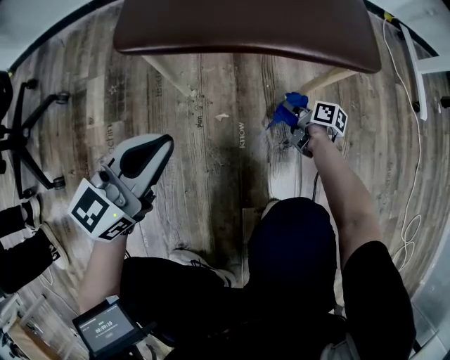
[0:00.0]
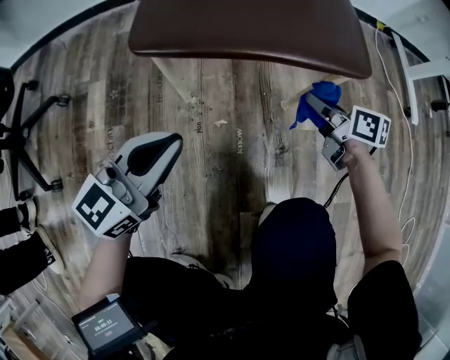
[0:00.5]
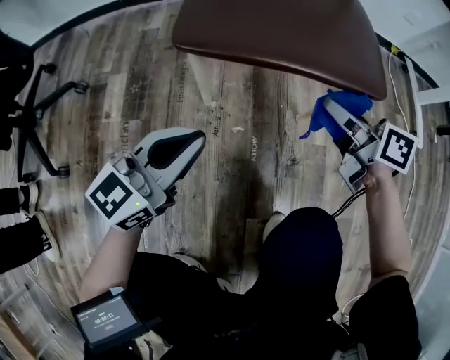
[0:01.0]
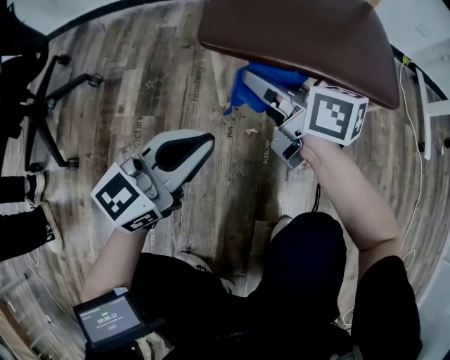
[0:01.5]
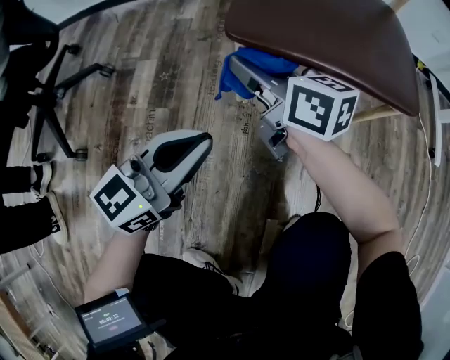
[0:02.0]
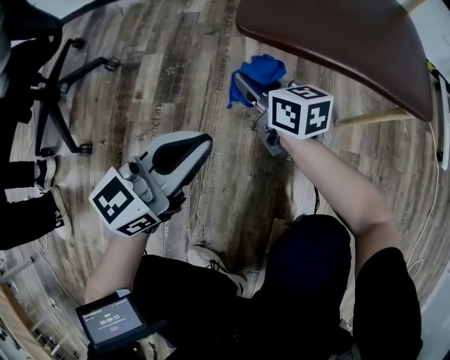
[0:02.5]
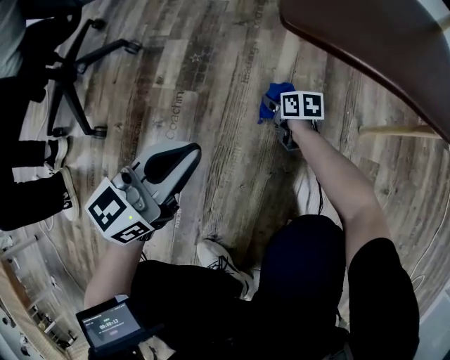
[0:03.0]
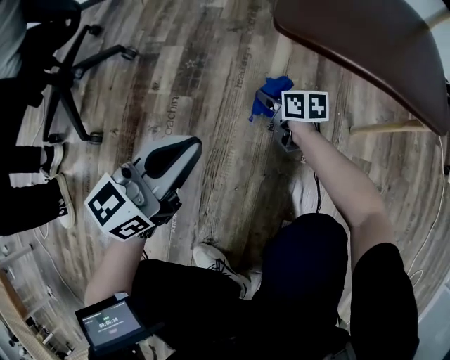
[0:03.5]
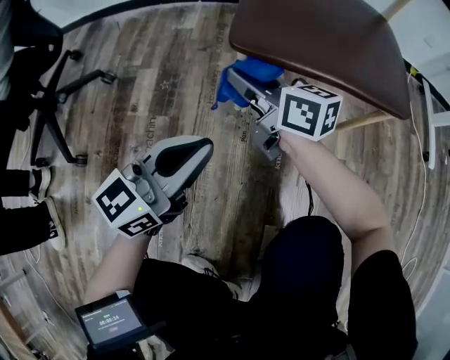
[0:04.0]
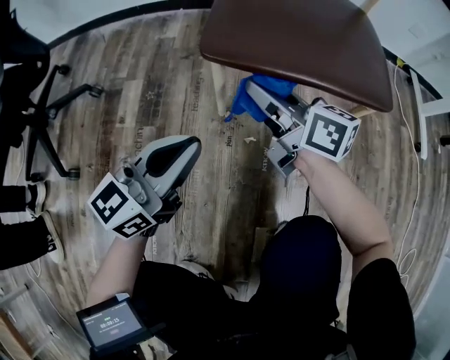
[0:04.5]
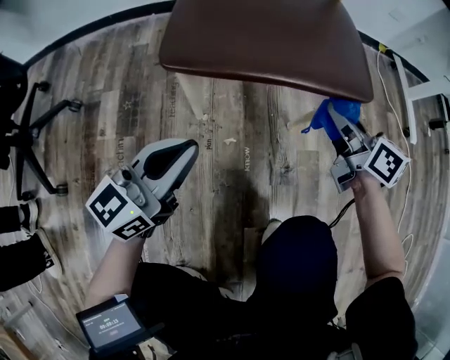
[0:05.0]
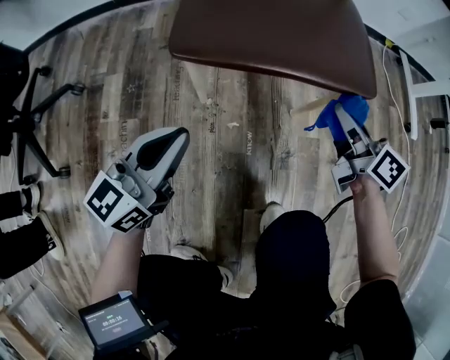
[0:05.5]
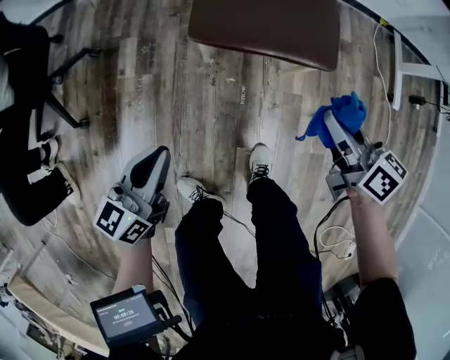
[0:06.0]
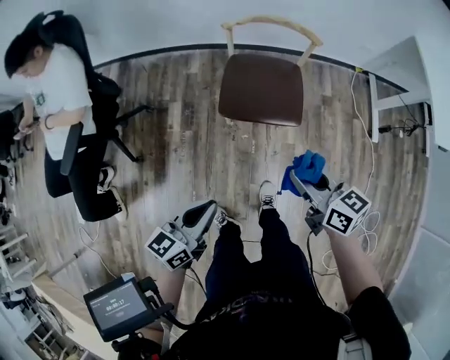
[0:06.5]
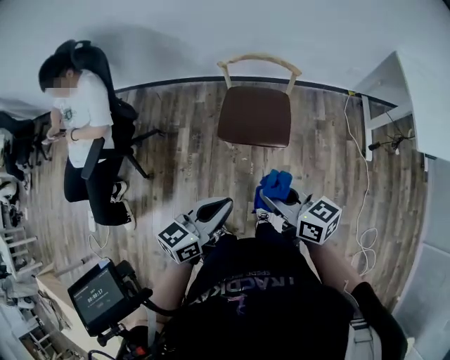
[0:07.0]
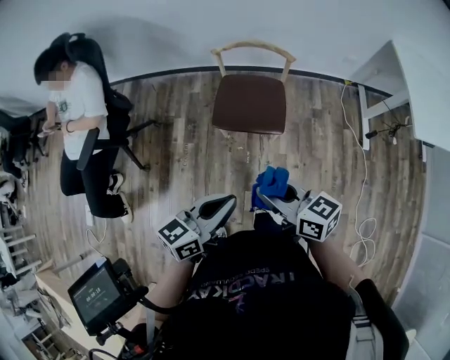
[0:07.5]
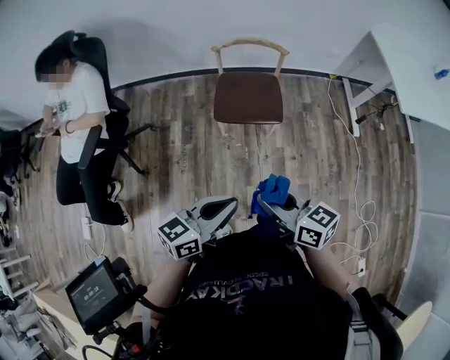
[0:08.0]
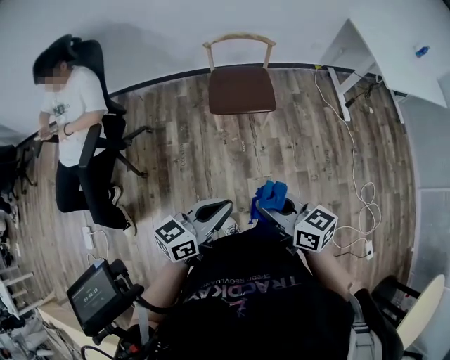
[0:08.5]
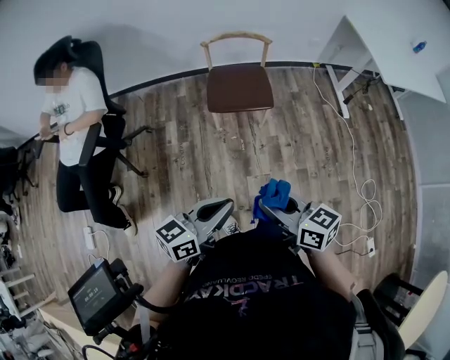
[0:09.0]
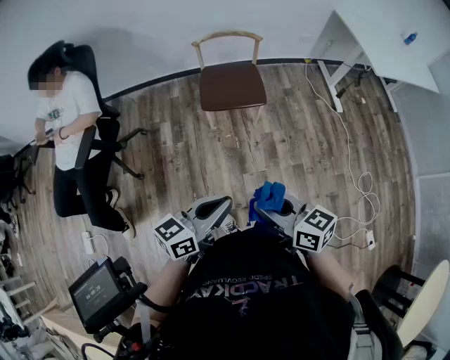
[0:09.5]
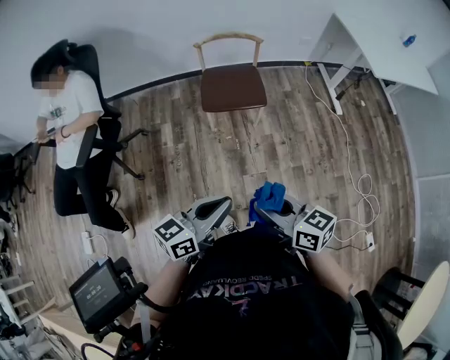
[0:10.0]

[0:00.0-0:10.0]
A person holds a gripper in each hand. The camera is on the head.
0:00.0 to 0:02.0: The right gripper travels to the left and upward by some 50 cm, and twists roughly 40 degrees counterclockwise, seen from behind. Meanwhile the left gripper travels to the left by some 5 cm.
0:02.0 to 0:04.0: The right gripper reaches about 35 cm downward, then returns.
0:04.0 to 0:06.0: The right gripper shifts approximately 40 cm to the right, upward and backward, and turns by roughly 20 degrees. The left gripper travels upward and backward by approximately 20 cm, and rotates some 20 degrees.
0:06.0 to 0:08.0: The two grippers go approximately 50 cm upward and backward. The left gripper rotates some 20 degrees.
0:08.0 to 0:10.0: Both grippers move backward, approximately 15 cm.

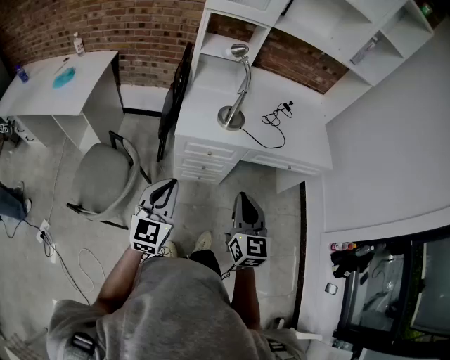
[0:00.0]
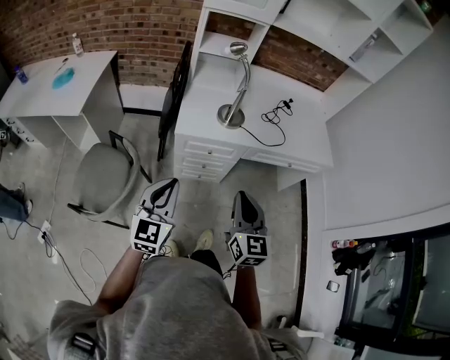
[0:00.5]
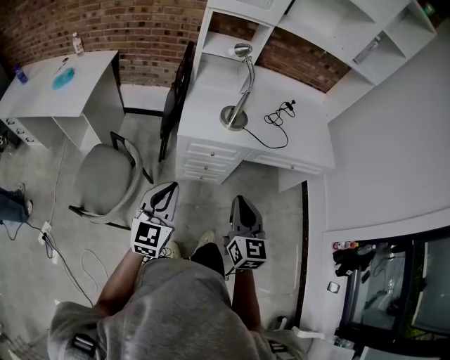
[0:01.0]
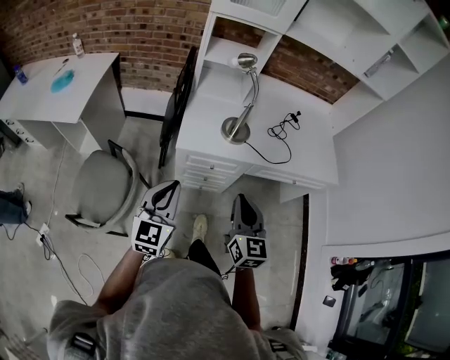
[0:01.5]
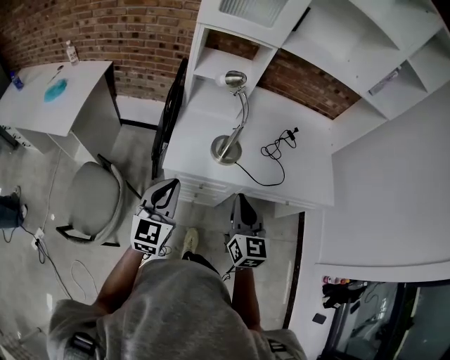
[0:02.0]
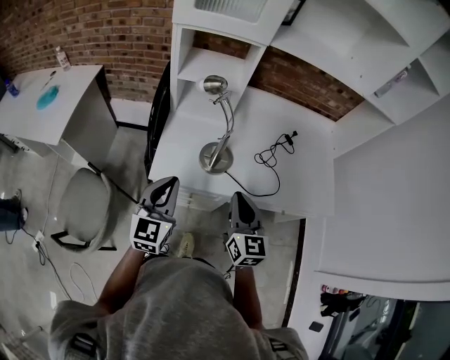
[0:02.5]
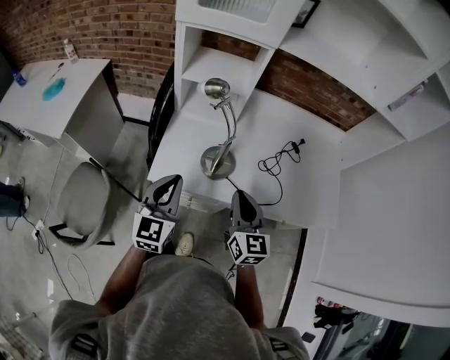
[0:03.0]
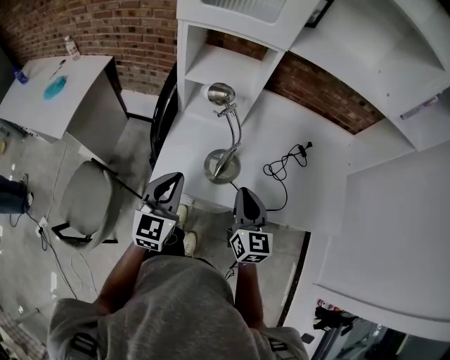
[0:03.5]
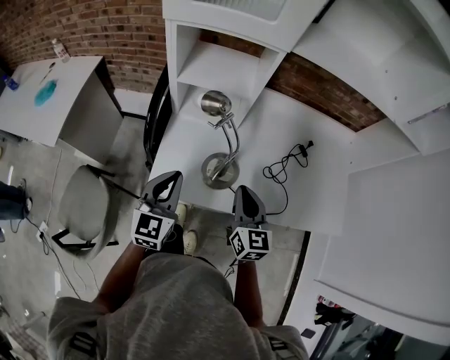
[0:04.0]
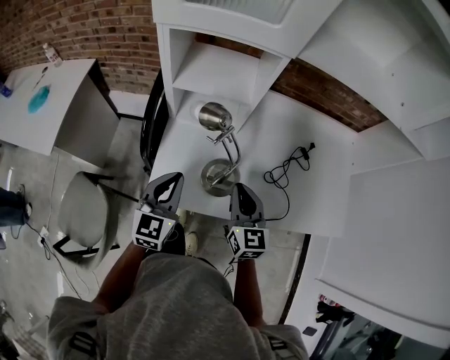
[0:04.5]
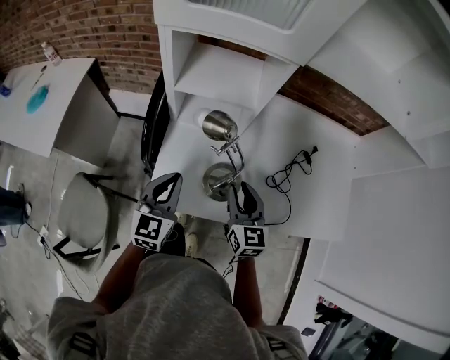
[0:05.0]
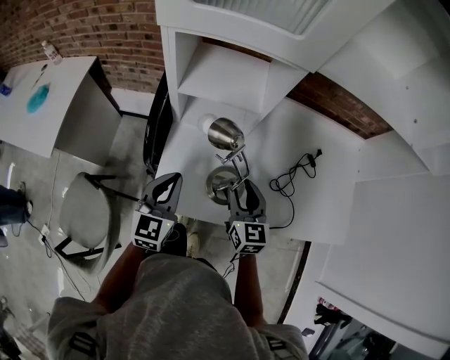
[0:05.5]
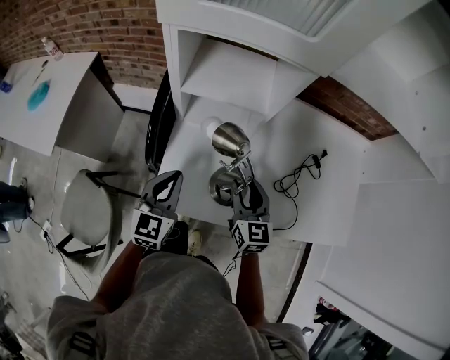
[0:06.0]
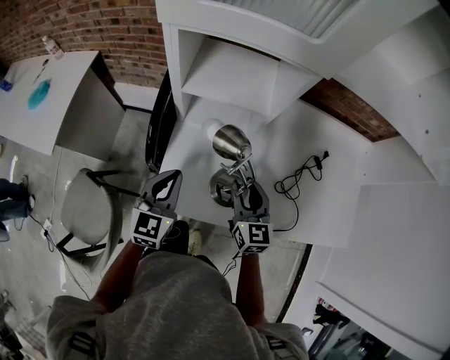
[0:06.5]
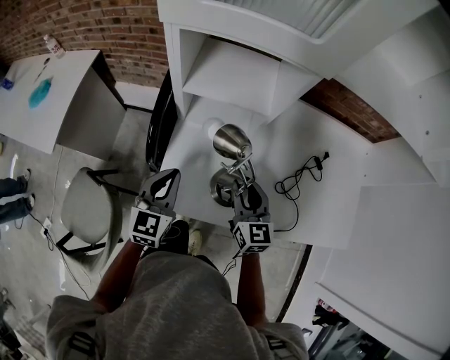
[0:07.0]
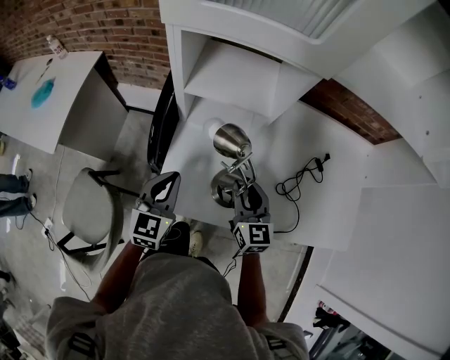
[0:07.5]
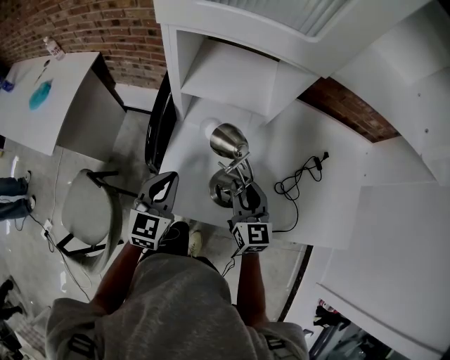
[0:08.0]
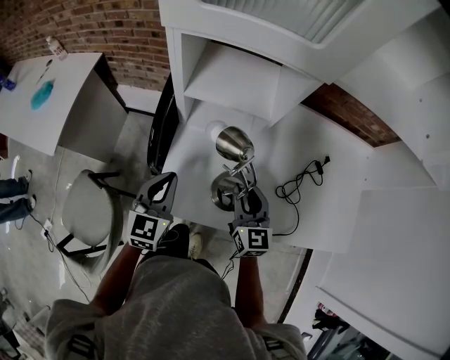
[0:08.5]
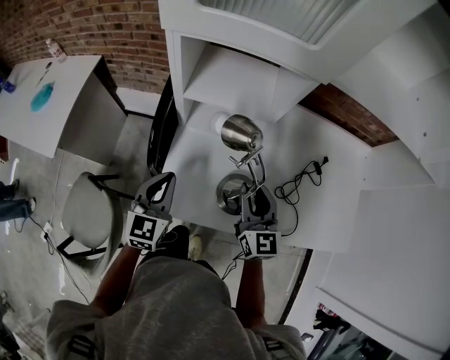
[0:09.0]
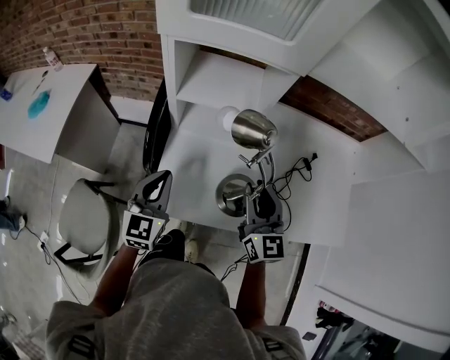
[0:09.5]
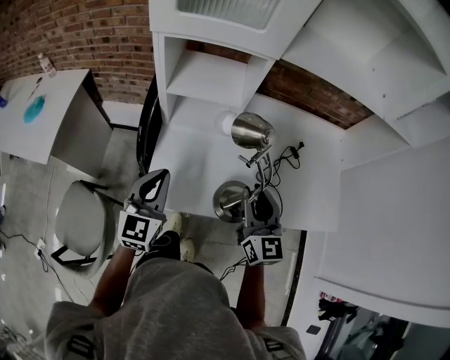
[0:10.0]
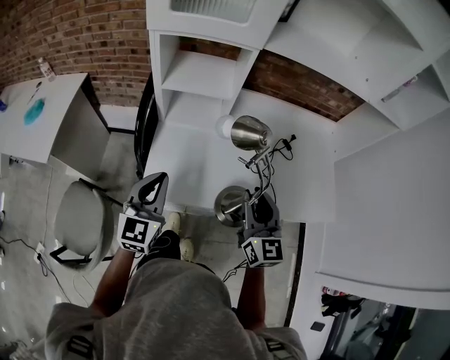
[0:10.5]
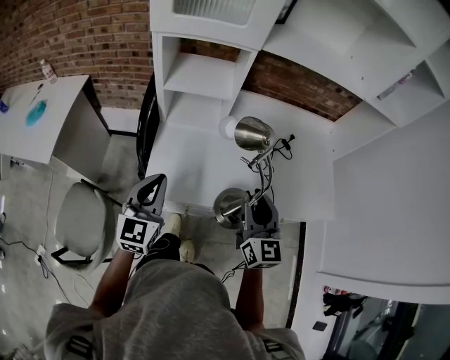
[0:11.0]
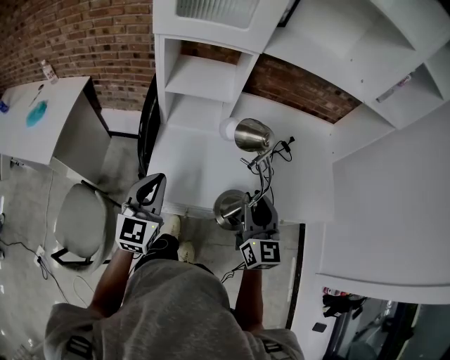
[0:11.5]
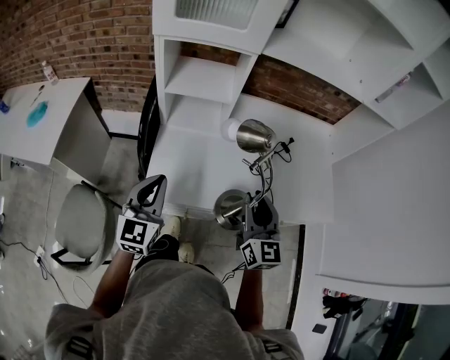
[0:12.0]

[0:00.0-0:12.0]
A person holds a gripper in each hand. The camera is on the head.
0:00.0 to 0:02.0: Both grippers travel together forward, approximately 20 cm.
0:02.0 to 0:04.0: The two grippers go about 20 cm forward.
0:04.0 to 0:06.0: Both grippers move forward, some 10 cm. The right gripper opens up.
0:06.0 to 0:08.0: The grippers make only small movements.
0:08.0 to 0:10.0: The left gripper shifts about 10 cm upward and backward; the right gripper goes about 15 cm upward, backward and to the right.
0:10.0 to 0:12.0: The two grippers go some 5 cm backward.

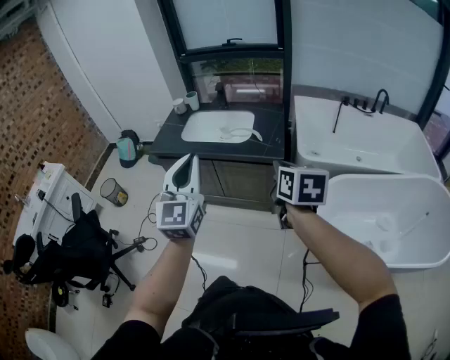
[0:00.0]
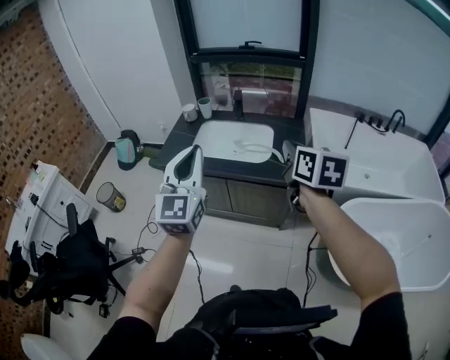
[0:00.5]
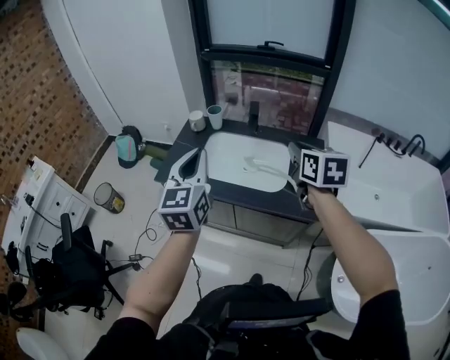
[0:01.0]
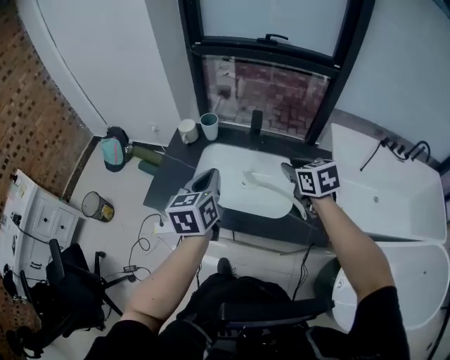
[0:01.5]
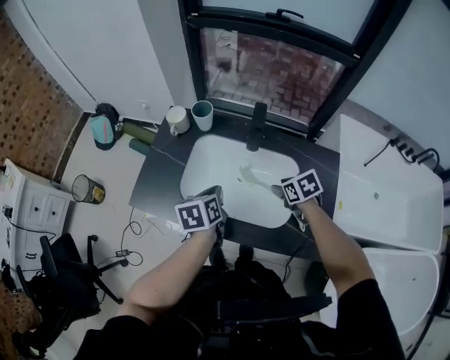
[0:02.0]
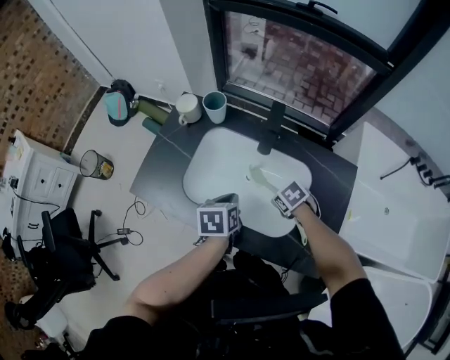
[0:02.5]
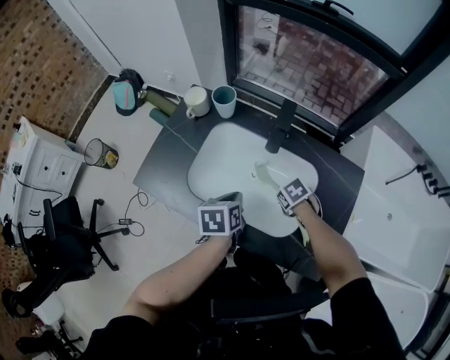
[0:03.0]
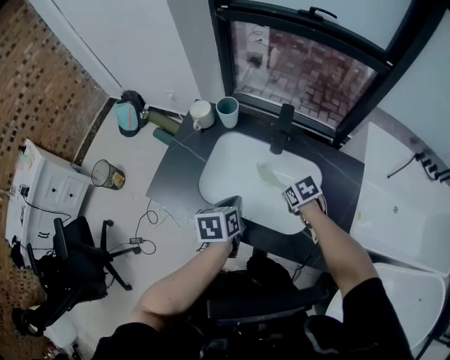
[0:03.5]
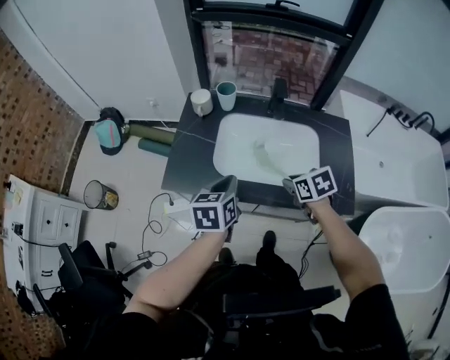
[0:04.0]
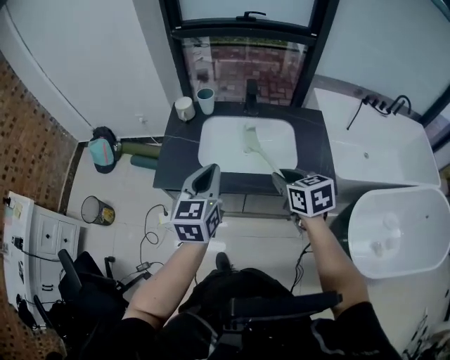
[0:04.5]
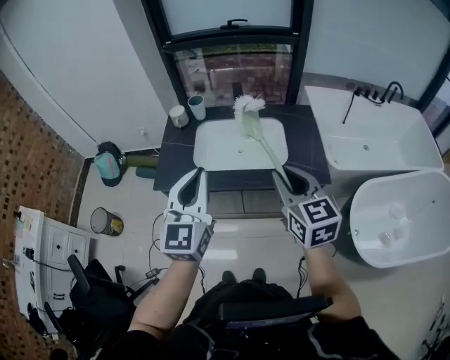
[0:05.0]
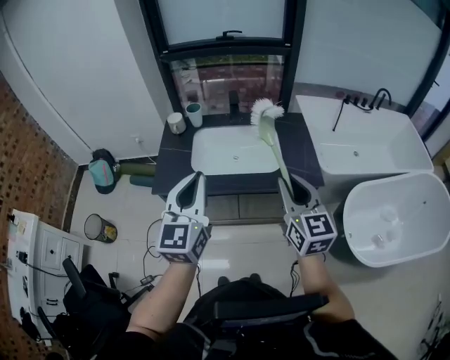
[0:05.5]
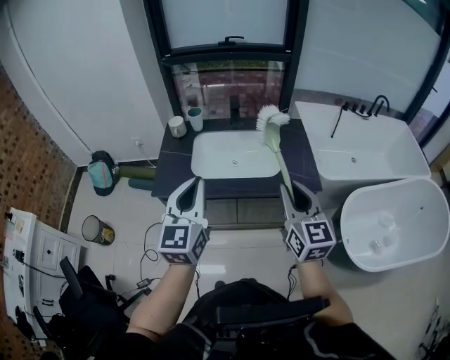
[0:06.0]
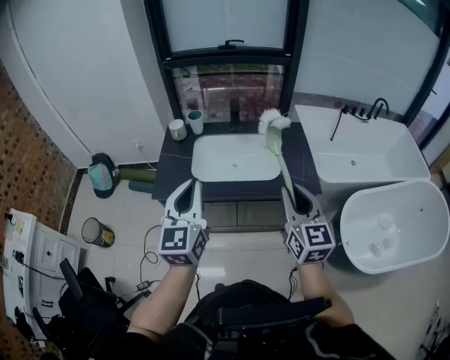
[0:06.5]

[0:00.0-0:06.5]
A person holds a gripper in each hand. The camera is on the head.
0:00.0 to 0:02.0: The pair of grippers is taken forward, roughly 1 m. The left gripper points its fingers approximately 50 degrees further downward; the right gripper tilts its fingers approximately 40 degrees downward, and opens its fingers.
0:02.0 to 0:04.5: The right gripper ends up approximately 50 cm from where it was, changes its angle by about 30 degrees, and closes; the left gripper changes place by about 40 cm, and turns by about 40 degrees.
0:04.5 to 0:06.5: The grippers both shift backward and upward by some 20 cm. The right gripper angles its fingers upward, by some 30 degrees.
